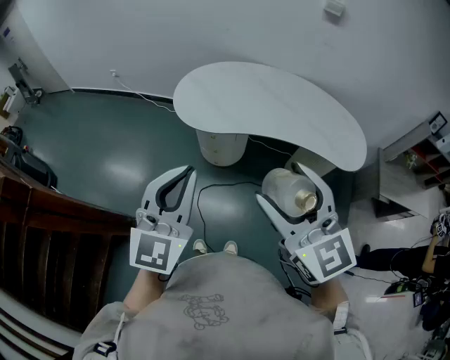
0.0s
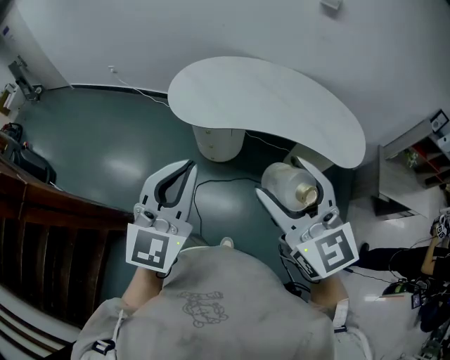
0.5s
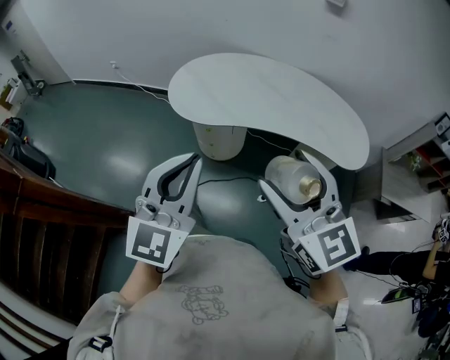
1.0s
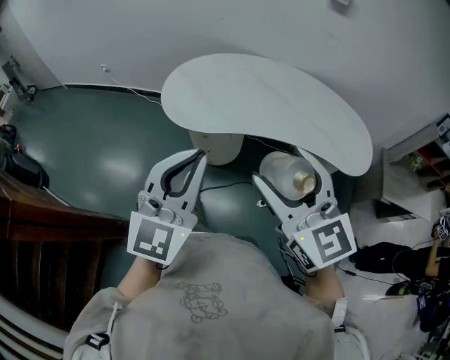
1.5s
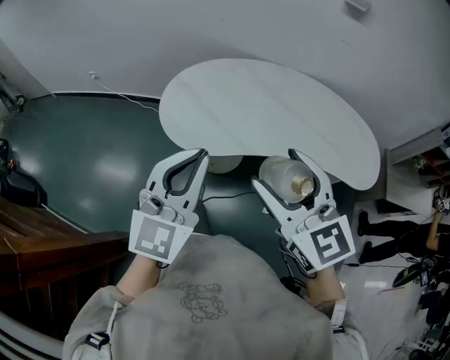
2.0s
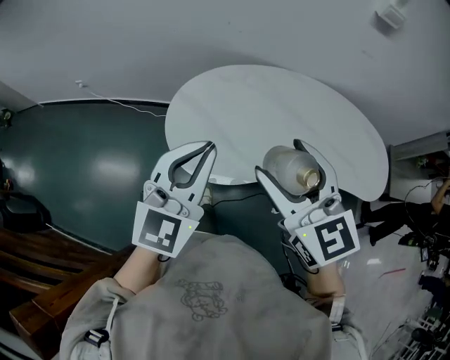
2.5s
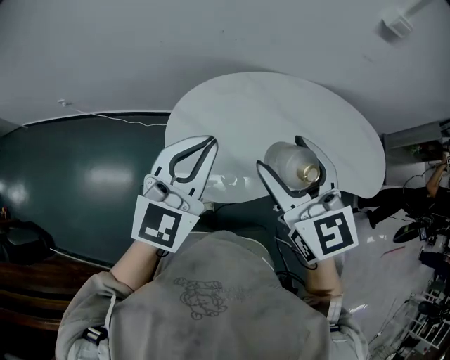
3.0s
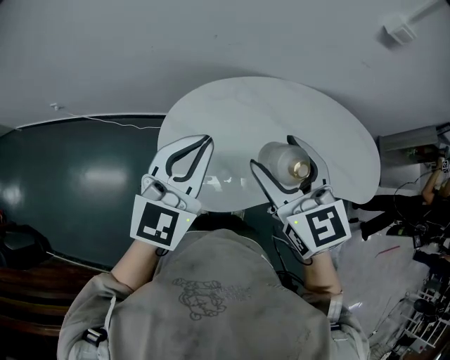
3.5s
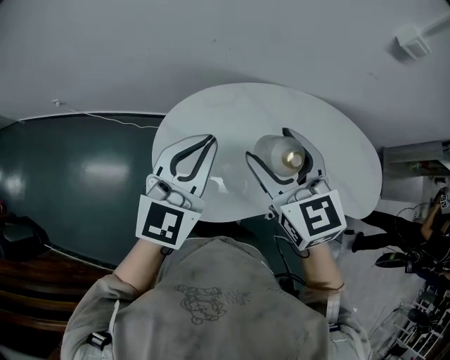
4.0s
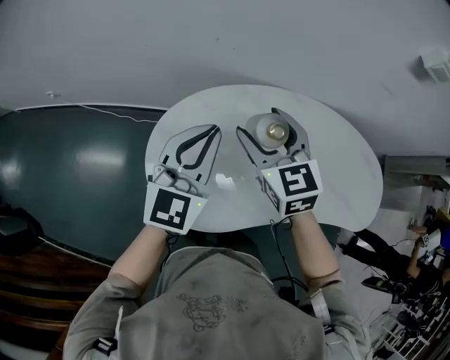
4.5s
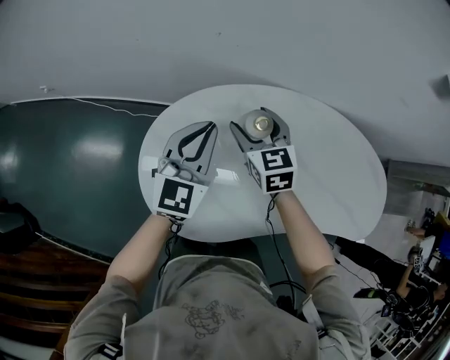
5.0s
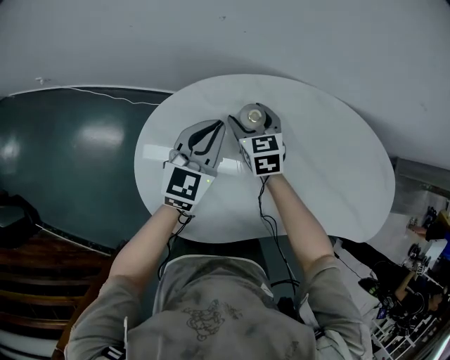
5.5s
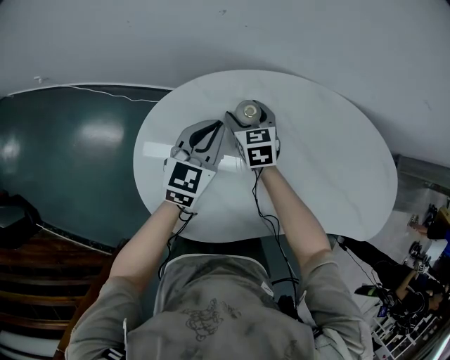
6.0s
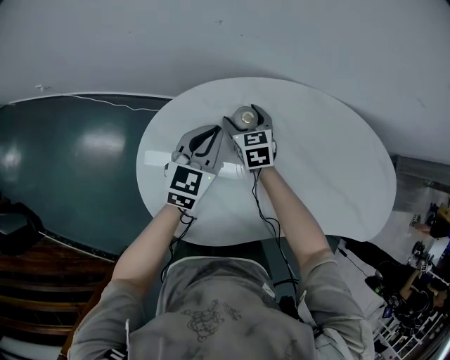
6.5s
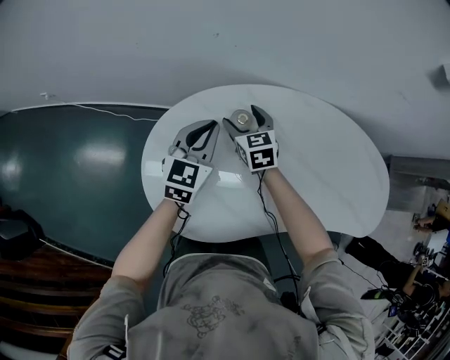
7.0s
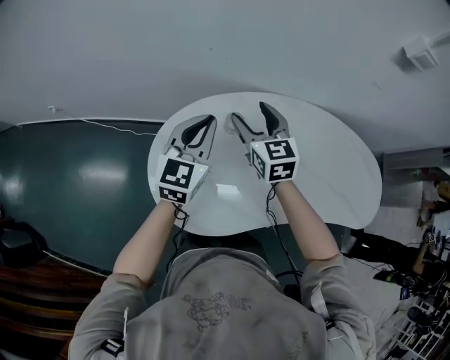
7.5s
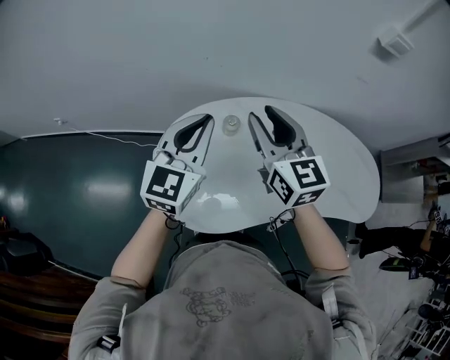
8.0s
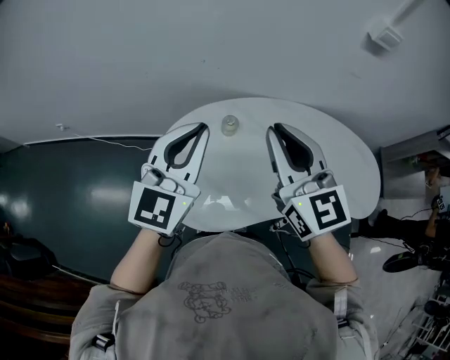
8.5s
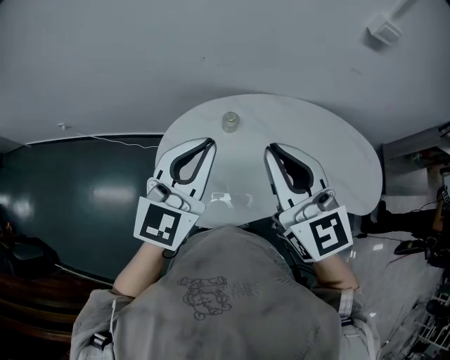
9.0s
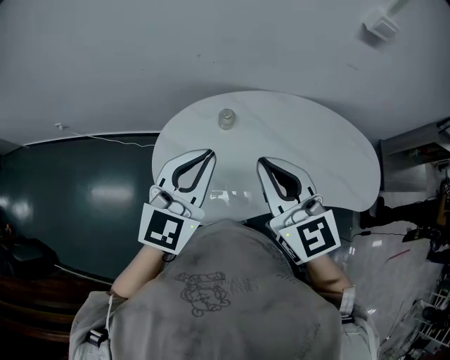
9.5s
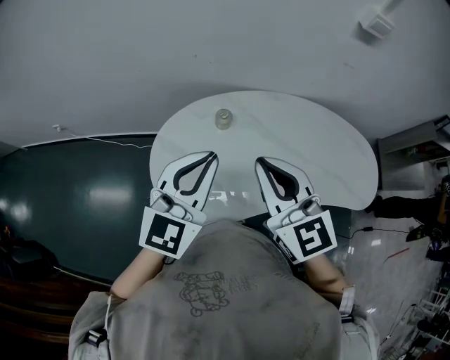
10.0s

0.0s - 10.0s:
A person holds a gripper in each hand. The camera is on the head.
0.0s - 2.0s: Both grippers move forward, about 25 cm.
2.0s - 4.0s: The two grippers go roughly 35 cm forward.
4.0s - 6.0s: Both grippers move downward and forward, roughly 40 cm. The left gripper swivels approximately 20 degrees; the right gripper swivels some 20 degrees.
6.0s - 8.0s: Both grippers move upward, approximately 35 cm. The right gripper tilts its fingers some 30 degrees upward, and closes up. The left gripper swivels approximately 20 degrees.
8.0s - 10.0s: The two grippers go some 15 cm backward. The right gripper closes up.

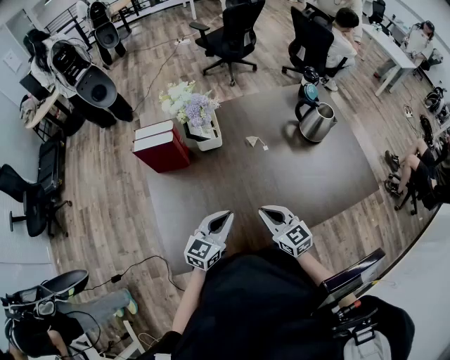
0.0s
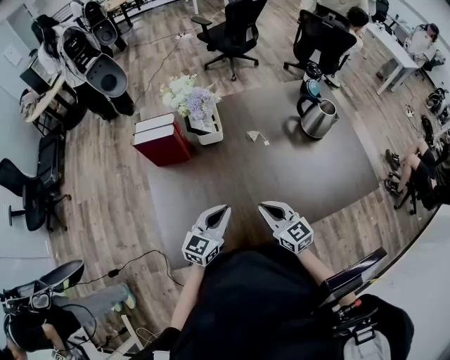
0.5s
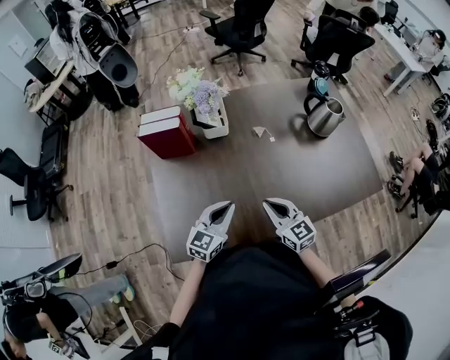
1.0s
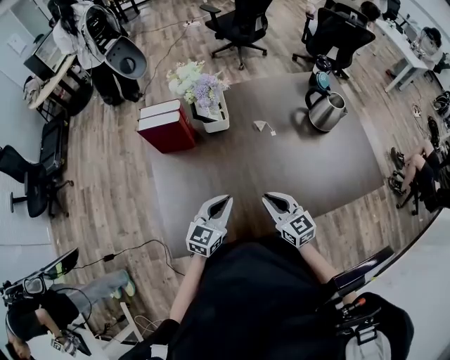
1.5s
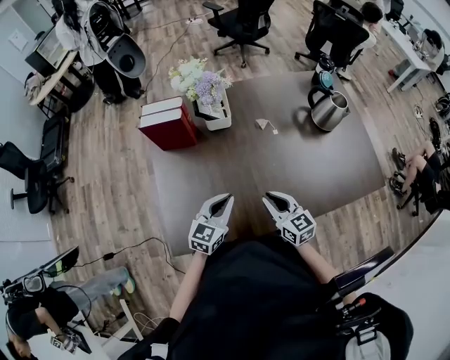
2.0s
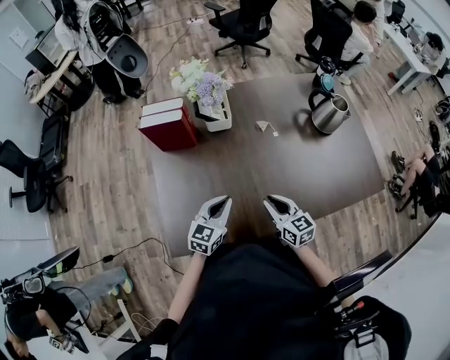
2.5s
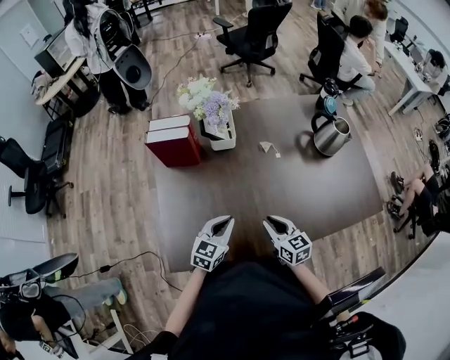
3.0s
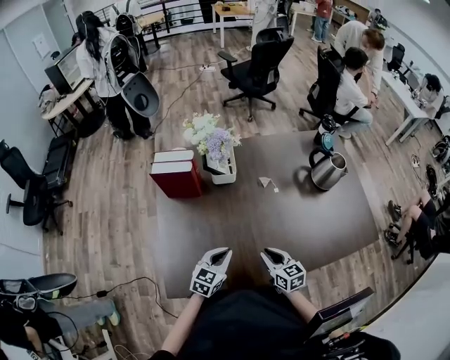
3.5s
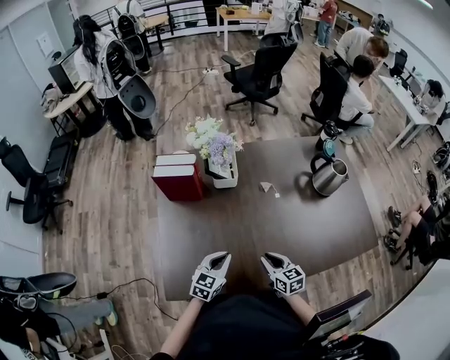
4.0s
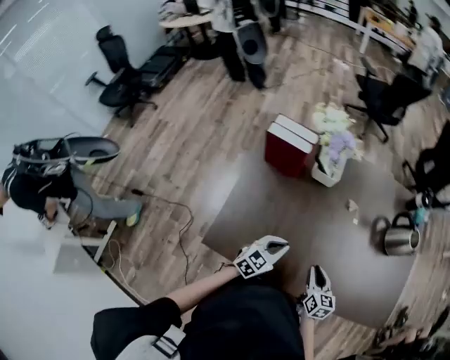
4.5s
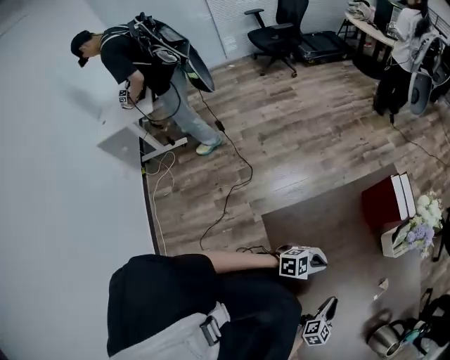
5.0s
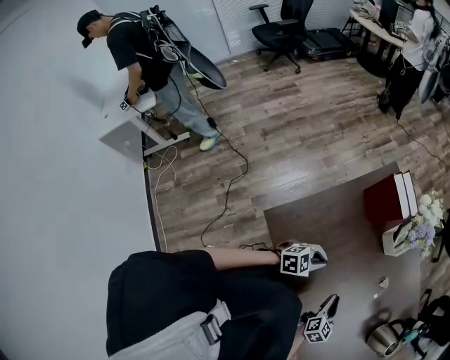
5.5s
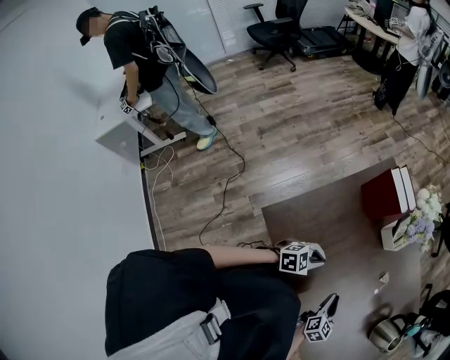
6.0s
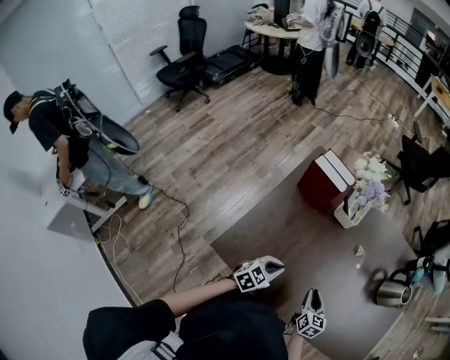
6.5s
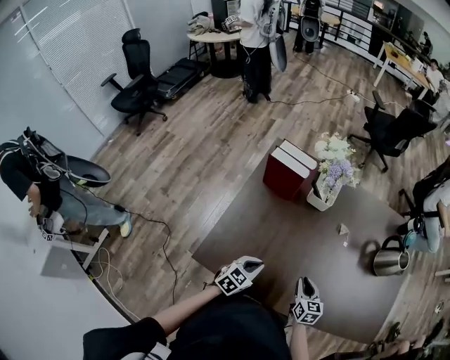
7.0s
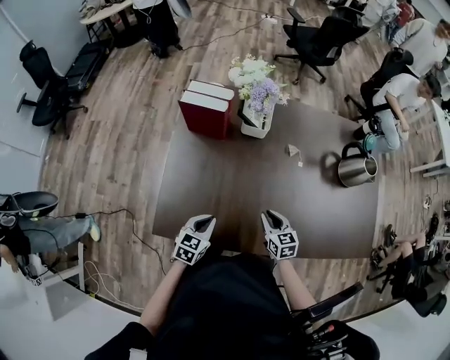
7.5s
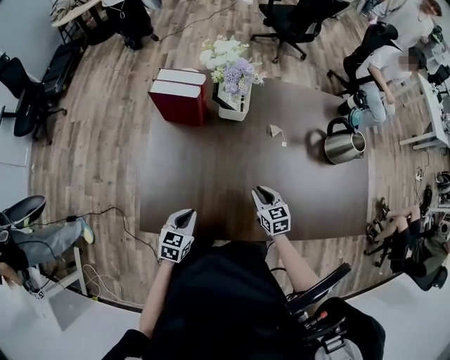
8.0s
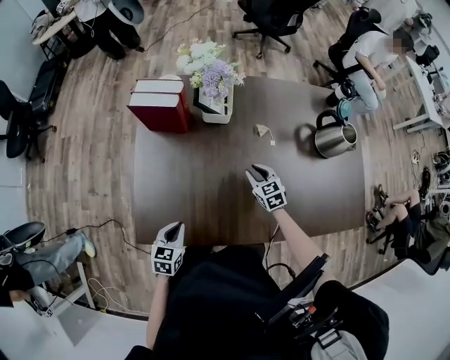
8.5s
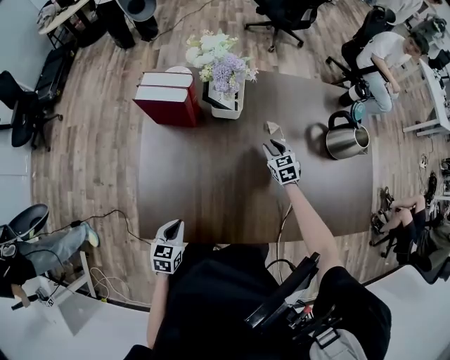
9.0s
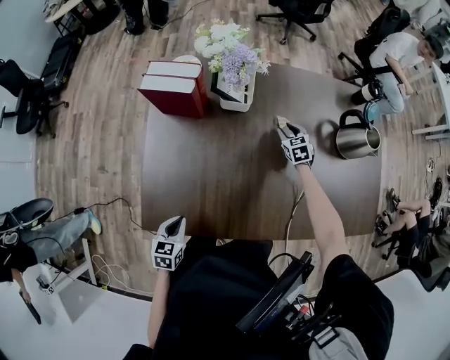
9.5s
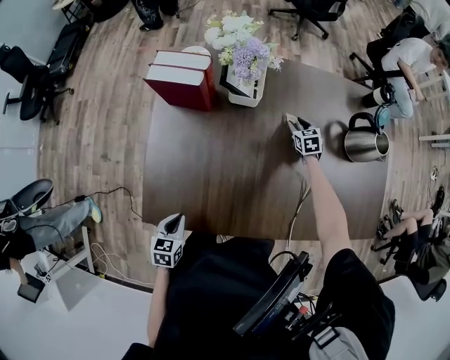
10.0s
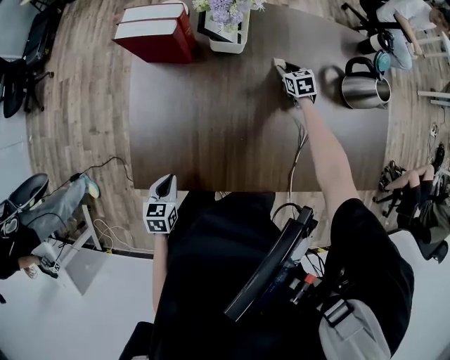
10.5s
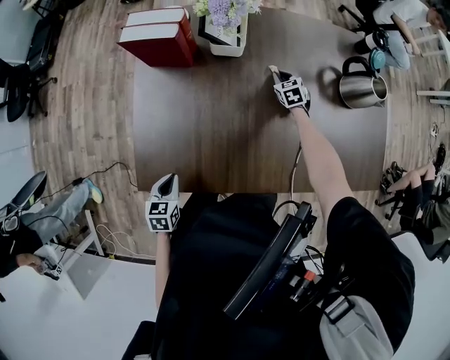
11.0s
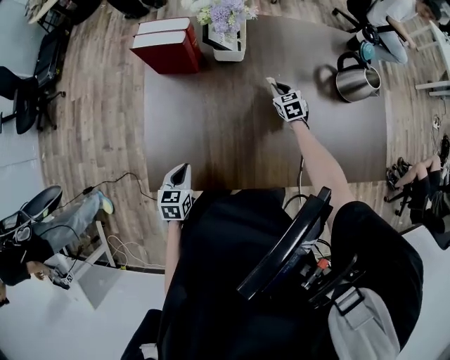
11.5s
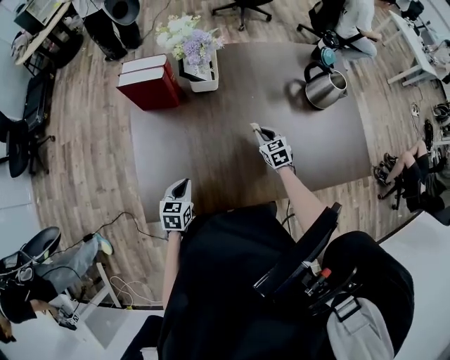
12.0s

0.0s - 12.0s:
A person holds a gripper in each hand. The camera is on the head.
0.0s - 2.0s: The grippers make only small movements.
2.0s - 4.0s: The right gripper is displaced downward by some 5 cm.
4.0s - 6.0s: The grippers move only a little.
6.0s - 8.0s: The left gripper moves approximately 5 cm. Meanwhile the right gripper heads downward, covering roughly 5 cm.
8.0s - 10.0s: The right gripper shifts about 25 cm forward. Meanwhile the left gripper heads to the left, covering about 5 cm.
10.0s - 12.0s: The right gripper travels backward by about 20 cm, and closes up, while the left gripper goes some 10 cm forward and to the right.

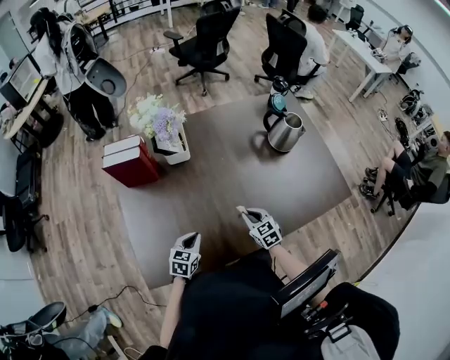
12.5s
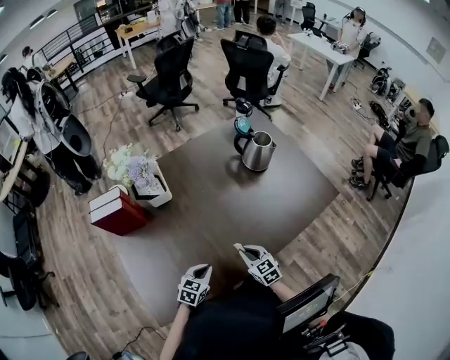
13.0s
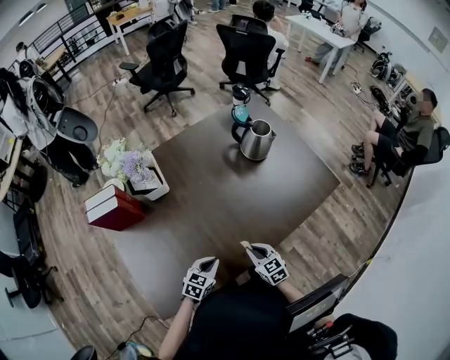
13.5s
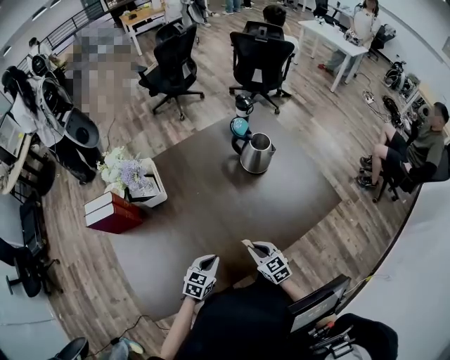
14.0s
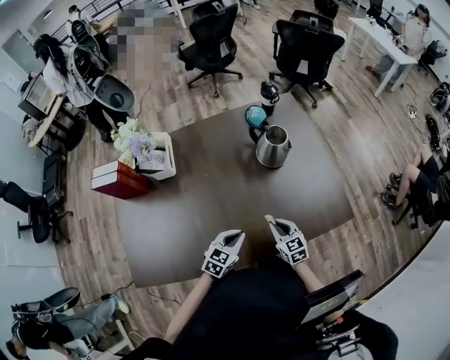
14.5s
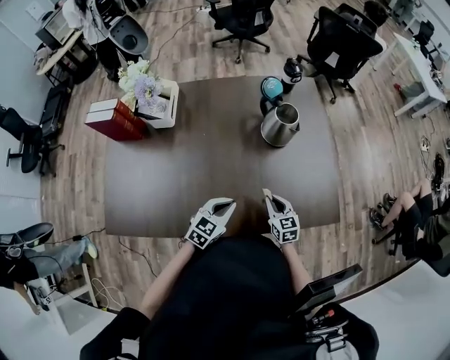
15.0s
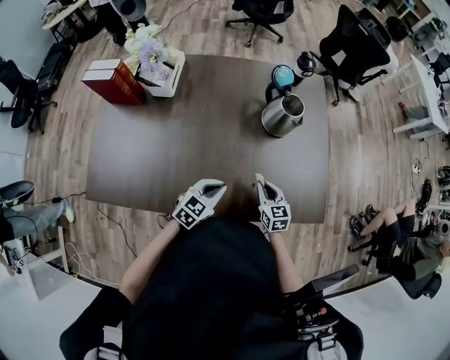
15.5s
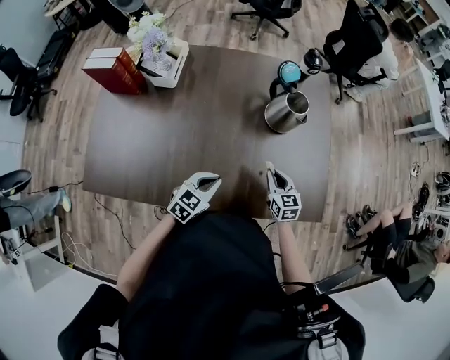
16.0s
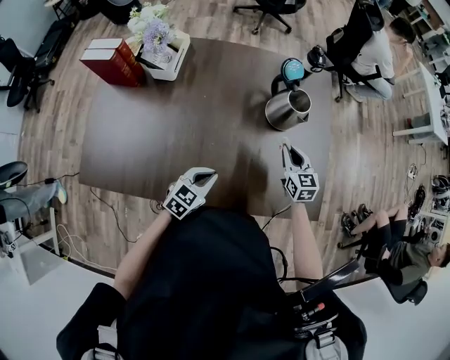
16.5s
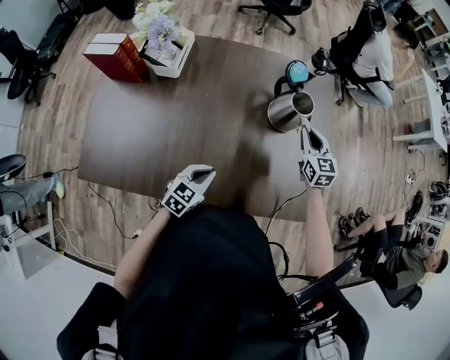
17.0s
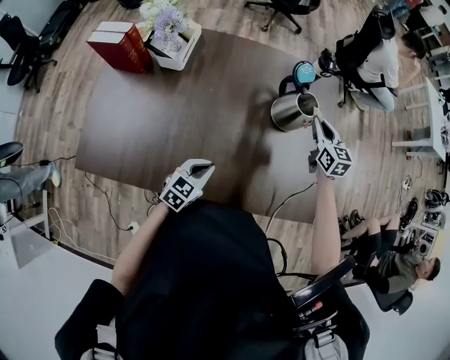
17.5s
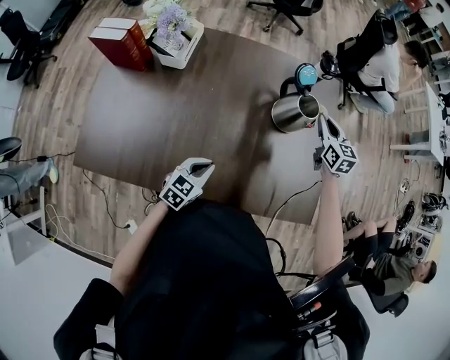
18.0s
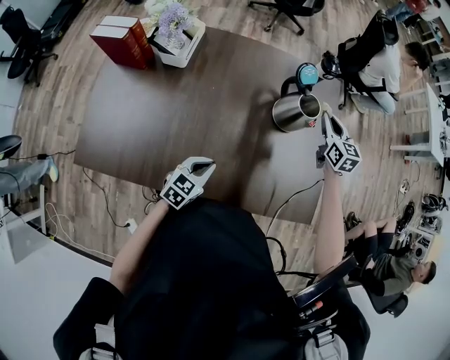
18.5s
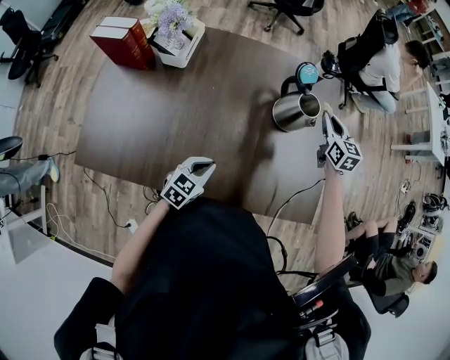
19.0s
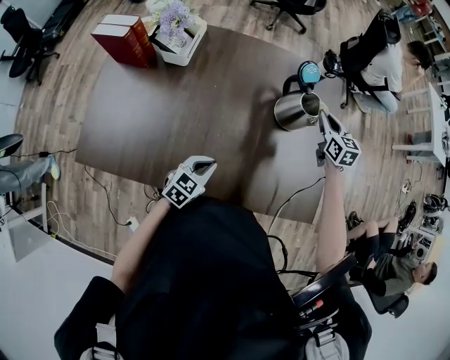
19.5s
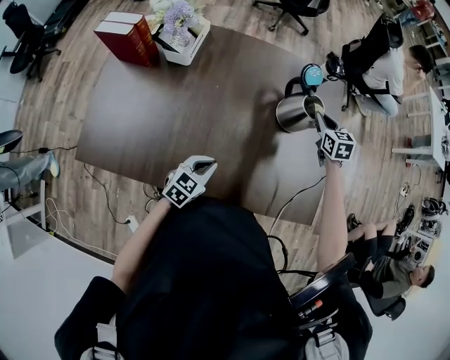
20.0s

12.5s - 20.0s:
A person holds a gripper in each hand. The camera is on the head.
12.5s - 14.5s: The right gripper moves to the right, approximately 25 cm; the left gripper travels to the right and forward by roughly 35 cm.
14.5s - 16.5s: The right gripper goes roughly 20 cm forward and to the right.
16.5s - 18.0s: The right gripper is displaced forward and upward by some 15 cm.
18.0s - 20.0s: The grippers stay close to where they were, moving slightly.
